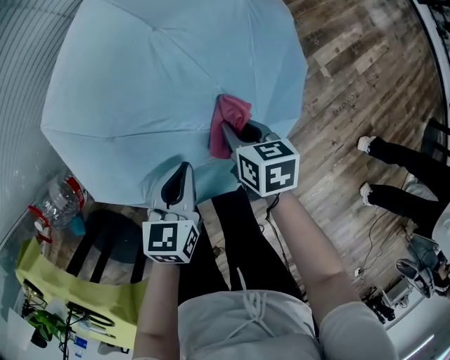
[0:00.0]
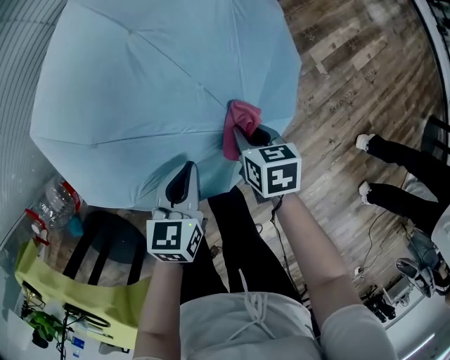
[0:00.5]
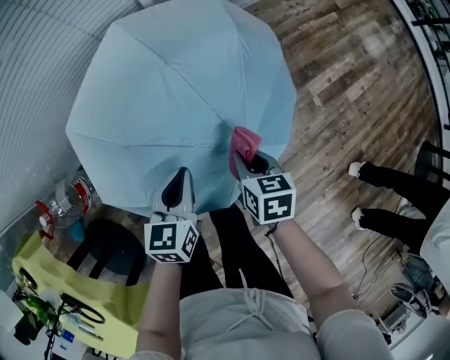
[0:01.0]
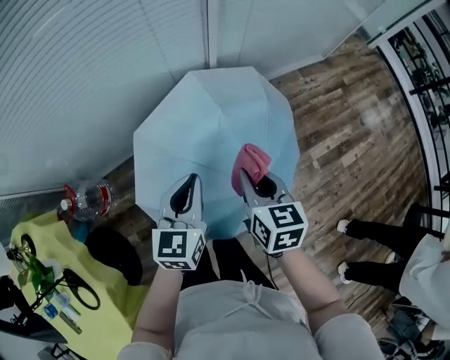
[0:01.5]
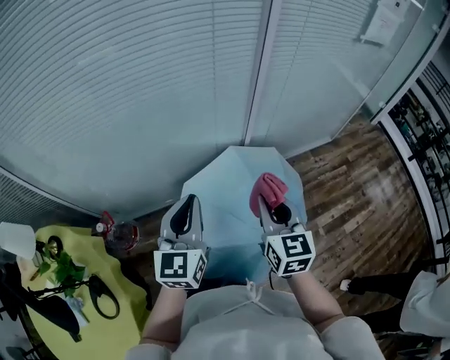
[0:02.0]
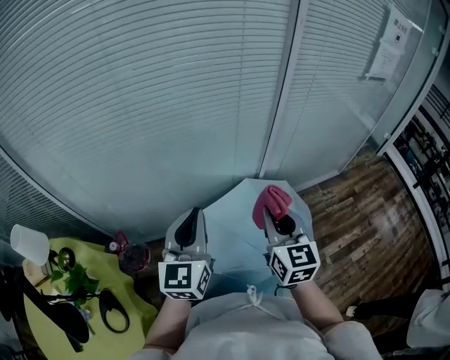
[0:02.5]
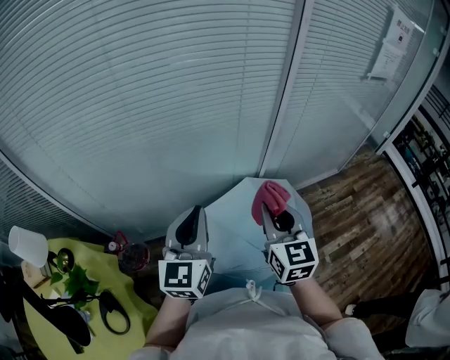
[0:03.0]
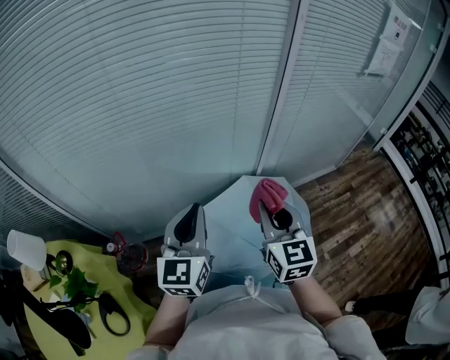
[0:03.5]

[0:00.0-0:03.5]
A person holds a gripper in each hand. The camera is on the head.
0:00.0 to 0:02.0: The two grippers go approximately 60 cm upward. The right gripper tilts its fingers about 40 degrees upward, while the left gripper tips its fingers upward by some 40 degrees.
0:02.0 to 0:03.5: The grippers both shift upward and to the left by some 10 cm.

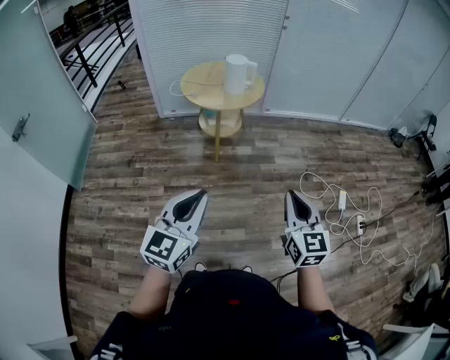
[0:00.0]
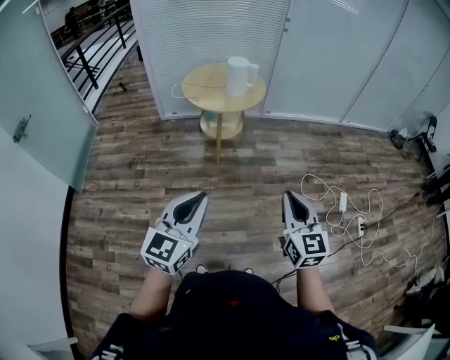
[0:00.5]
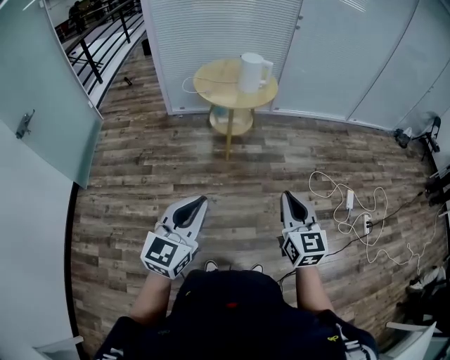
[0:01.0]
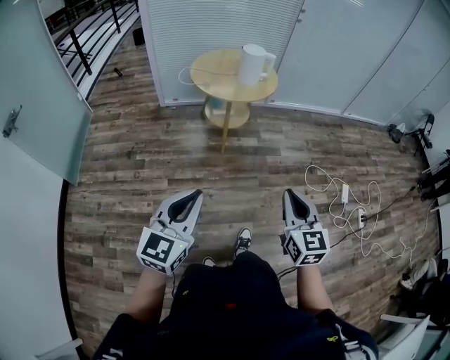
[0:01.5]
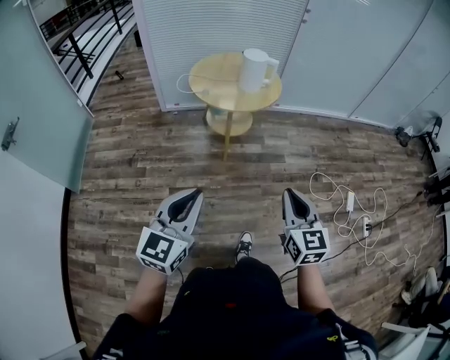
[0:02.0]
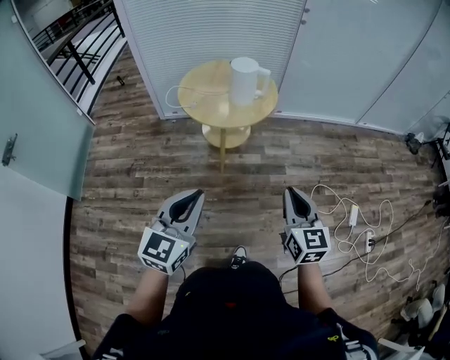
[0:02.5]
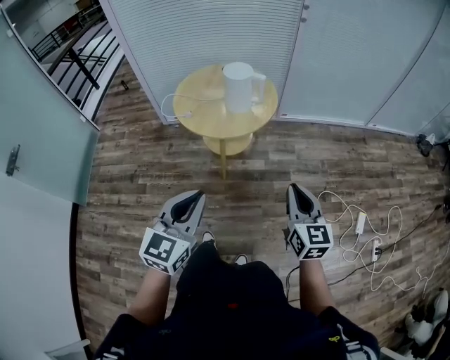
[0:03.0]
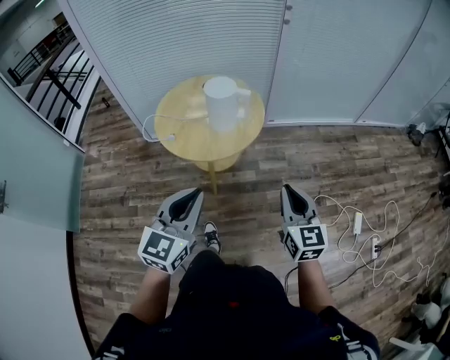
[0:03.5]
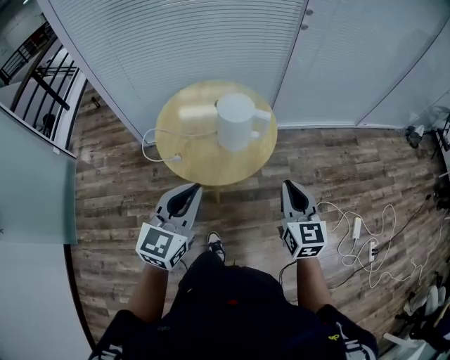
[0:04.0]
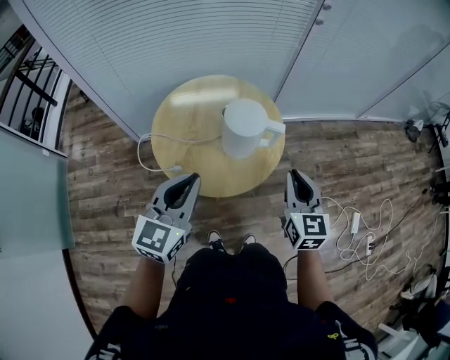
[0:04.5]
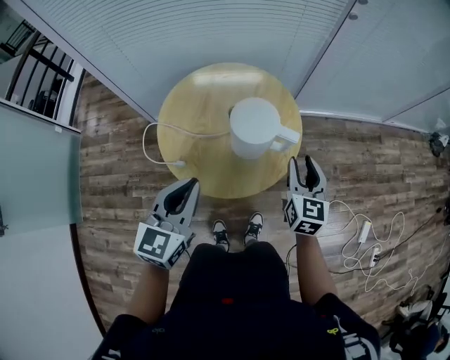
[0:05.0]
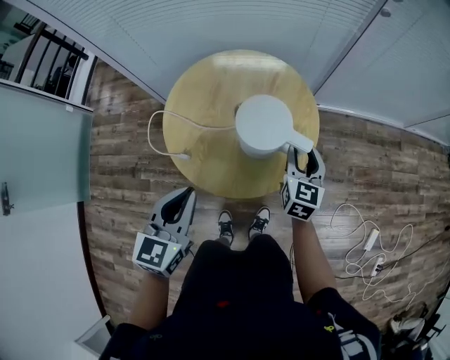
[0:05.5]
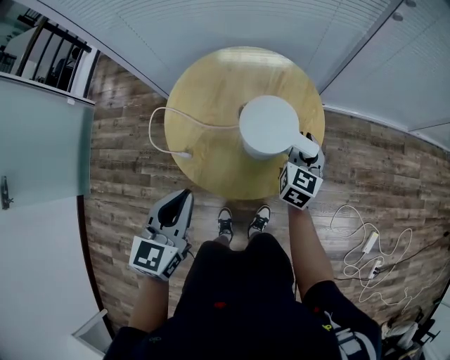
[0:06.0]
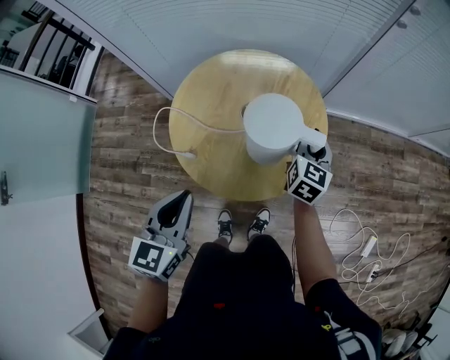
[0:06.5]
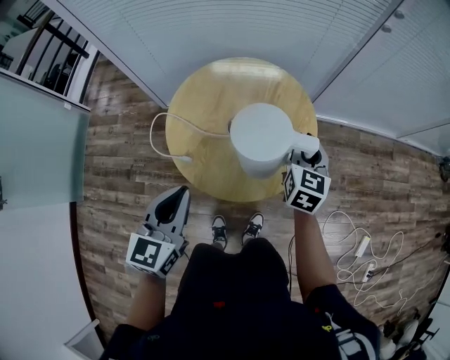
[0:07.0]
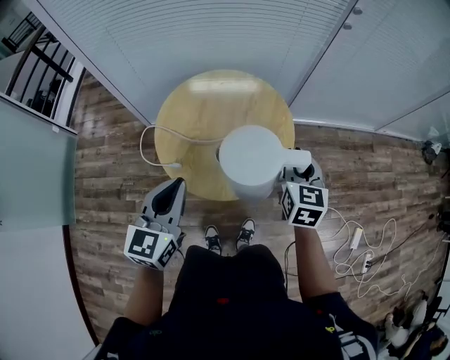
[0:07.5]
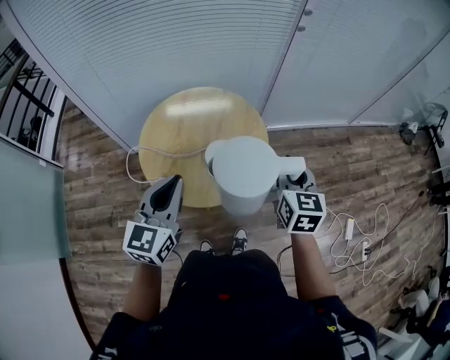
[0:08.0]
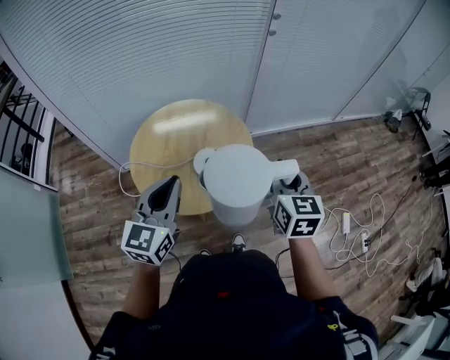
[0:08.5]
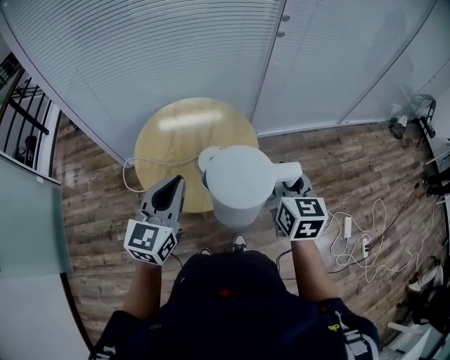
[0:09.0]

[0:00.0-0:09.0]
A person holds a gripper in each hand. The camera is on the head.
0:00.0 to 0:02.0: The two grippers go approximately 20 cm to the left and forward.
0:02.0 to 0:04.5: Both grippers are carried forward, approximately 70 cm.
0:04.5 to 0:07.0: The right gripper heads forward and downward, covering some 20 cm, and opens, then closes again. Meanwhile the left gripper shifts roughly 5 cm downward, and swivels some 20 degrees.
0:07.0 to 0:09.0: The right gripper heads backward, upward and to the right, covering some 25 cm, while the left gripper goes about 15 cm upward and to the right, and changes its angle by about 20 degrees.

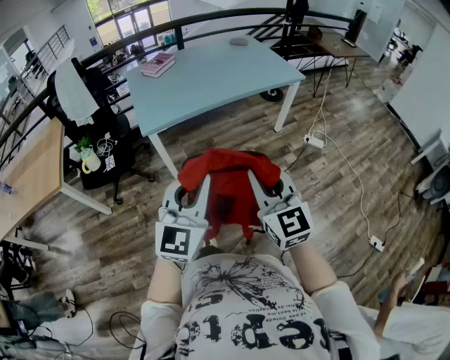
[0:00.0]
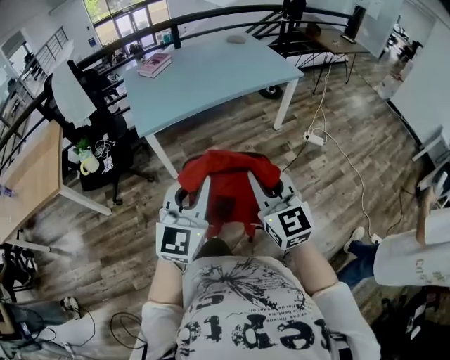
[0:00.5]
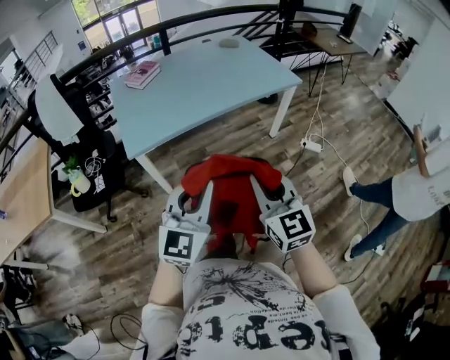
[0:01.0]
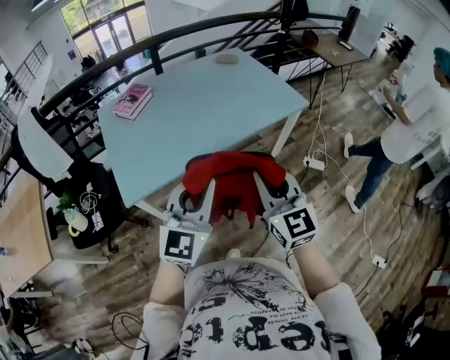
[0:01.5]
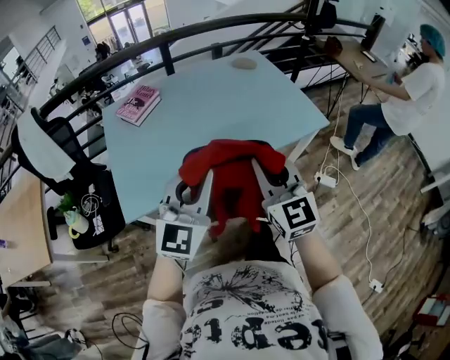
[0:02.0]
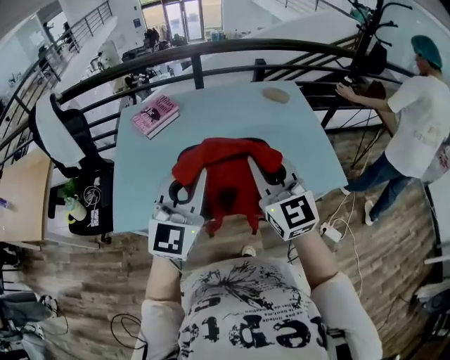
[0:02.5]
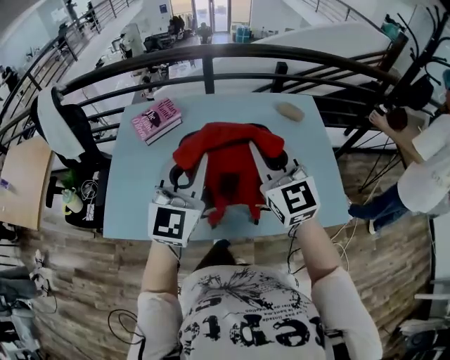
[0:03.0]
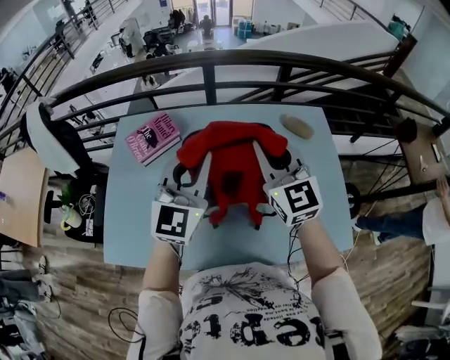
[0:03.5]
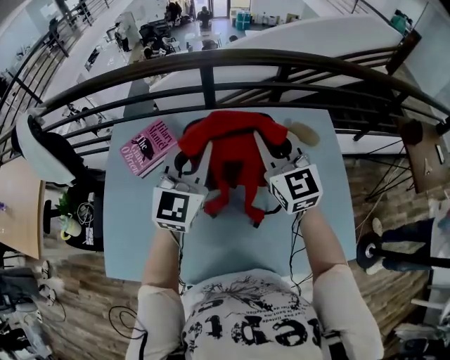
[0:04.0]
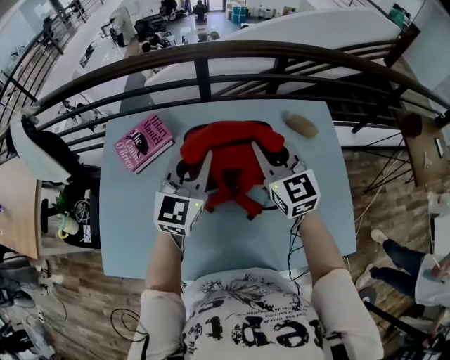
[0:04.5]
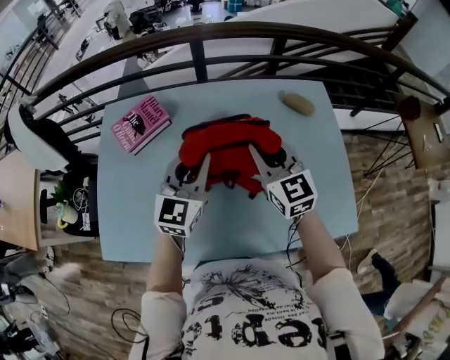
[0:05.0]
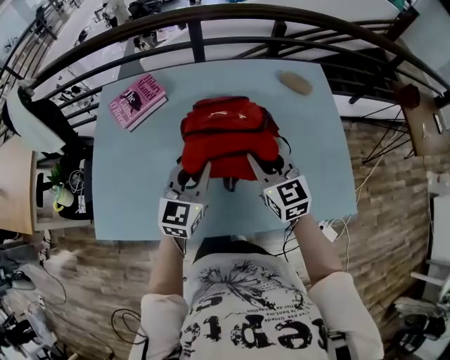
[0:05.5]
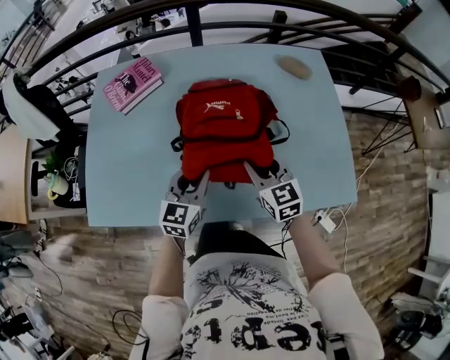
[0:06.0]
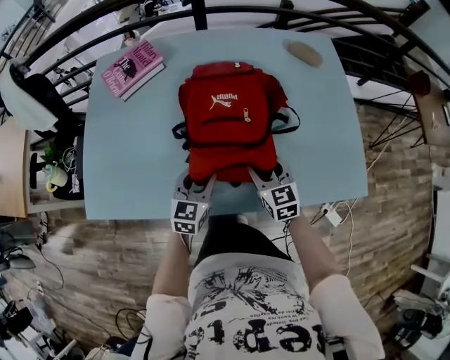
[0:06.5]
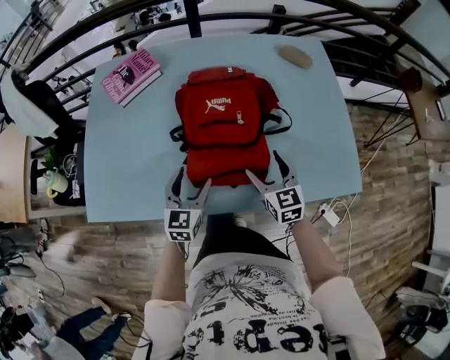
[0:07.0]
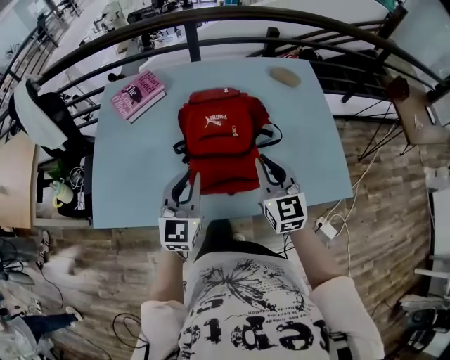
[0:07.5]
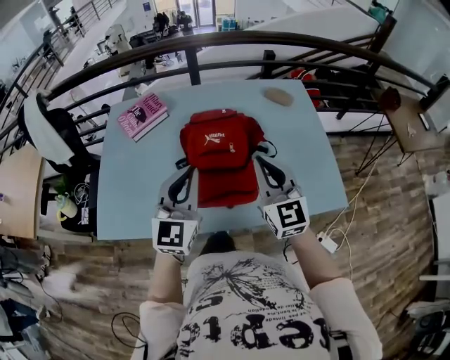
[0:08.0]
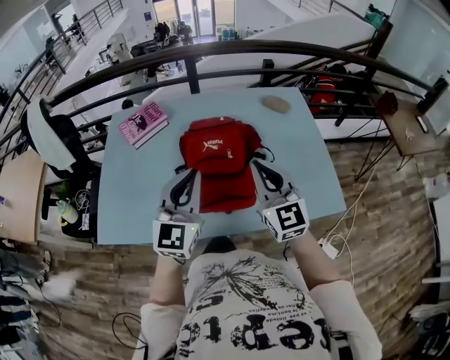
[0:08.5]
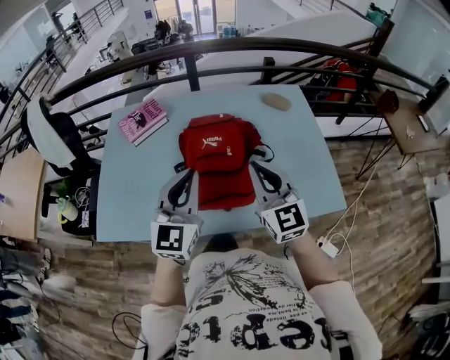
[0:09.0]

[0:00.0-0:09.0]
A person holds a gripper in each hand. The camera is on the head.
0:00.0 to 0:02.0: The two grippers travel together, forward, some 50 cm.
0:02.0 to 0:04.5: The pair of grippers is taken forward, roughly 60 cm. The right gripper changes its angle by approximately 20 degrees. The left gripper rotates approximately 20 degrees.
0:04.5 to 0:07.0: The left gripper heads downward and backward, covering roughly 35 cm, turns by approximately 20 degrees, and opens up; the right gripper is displaced backward and downward by about 35 cm, swivels some 20 degrees, and opens up.
0:07.0 to 0:09.0: The two grippers go roughly 25 cm upward. The left gripper turns by some 30 degrees, and closes up; the right gripper changes its angle by approximately 30 degrees, and closes up.

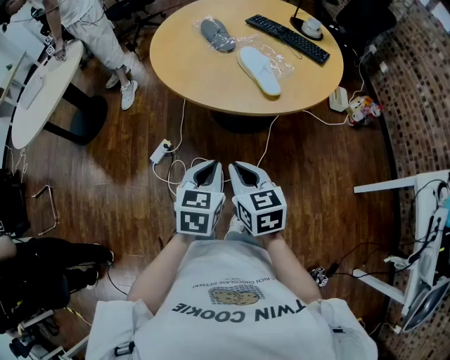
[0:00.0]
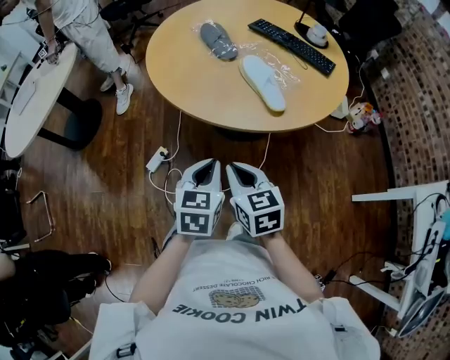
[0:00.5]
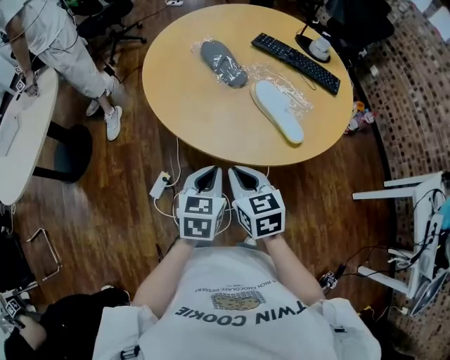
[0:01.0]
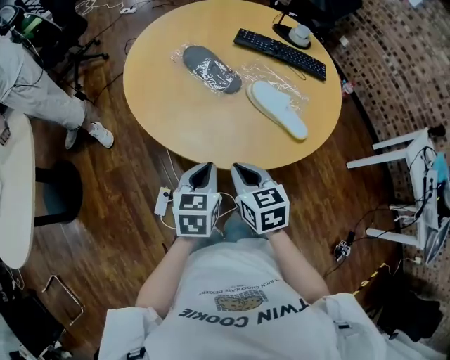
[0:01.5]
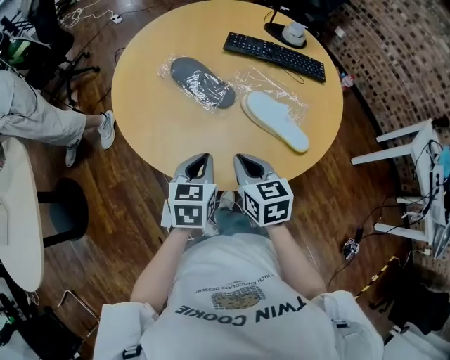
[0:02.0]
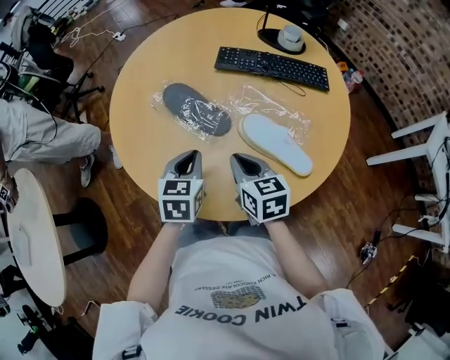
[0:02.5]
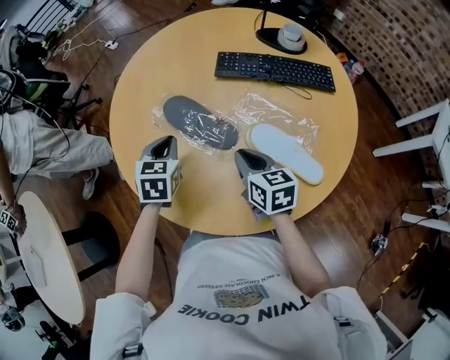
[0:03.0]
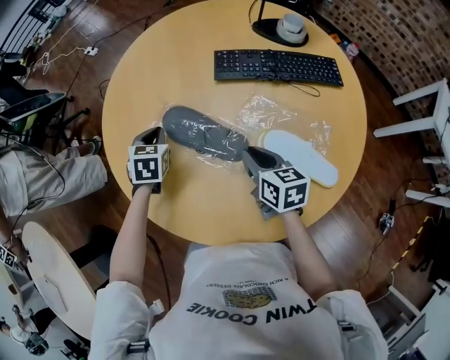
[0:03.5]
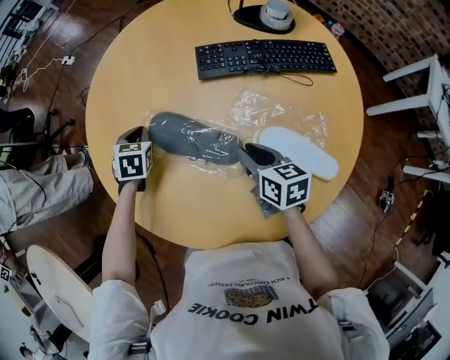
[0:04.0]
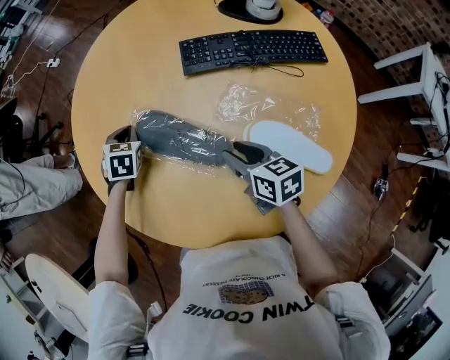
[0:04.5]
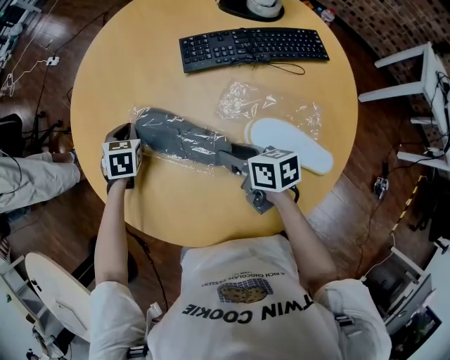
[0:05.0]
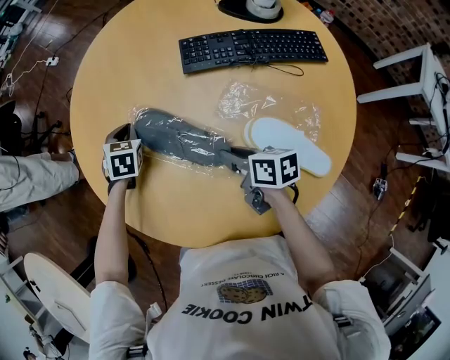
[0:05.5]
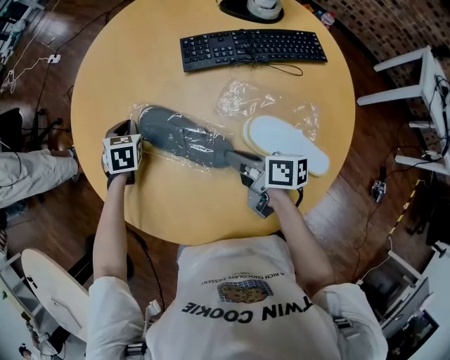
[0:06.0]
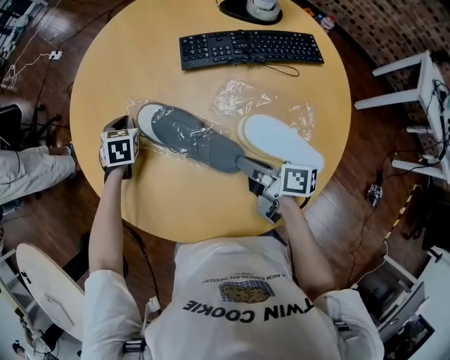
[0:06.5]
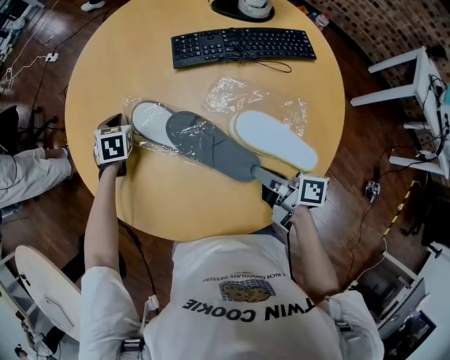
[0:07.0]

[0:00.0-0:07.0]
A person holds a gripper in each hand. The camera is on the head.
0:00.0 to 0:02.0: The left gripper changes place by some 40 cm, and swivels about 20 degrees; the right gripper ends up roughly 40 cm from where it was, and swivels roughly 30 degrees.
0:02.0 to 0:03.5: The right gripper goes some 20 cm forward, and turns by some 20 degrees. Meanwhile the left gripper is displaced forward by roughly 35 cm, and swivels about 30 degrees.
0:03.5 to 0:05.0: The left gripper is displaced downward and forward by approximately 10 cm. Meanwhile the right gripper moves downward, about 5 cm, and opens up.
0:05.0 to 0:07.0: The right gripper moves backward and to the right, about 15 cm, swivels some 30 degrees, and closes.
